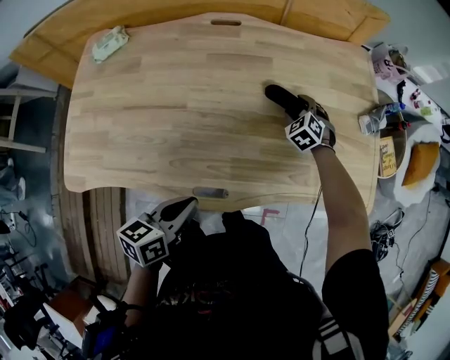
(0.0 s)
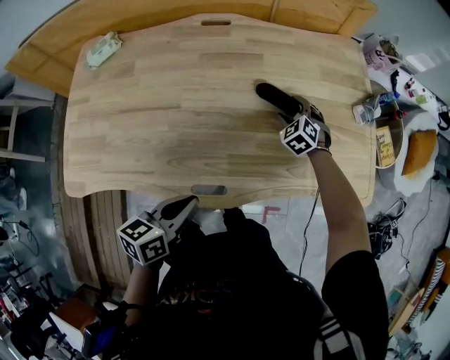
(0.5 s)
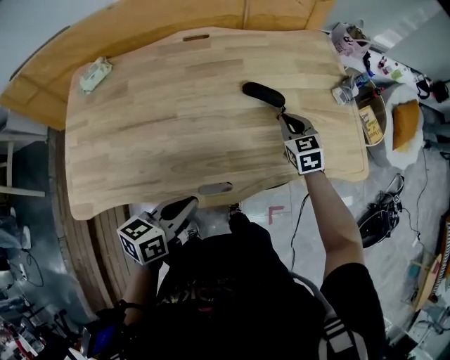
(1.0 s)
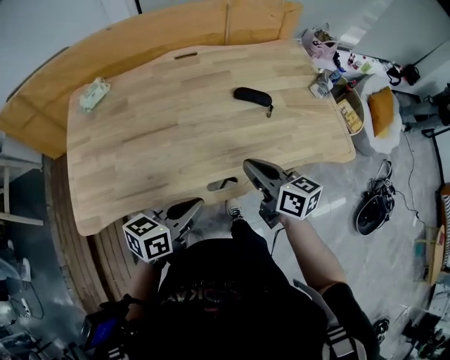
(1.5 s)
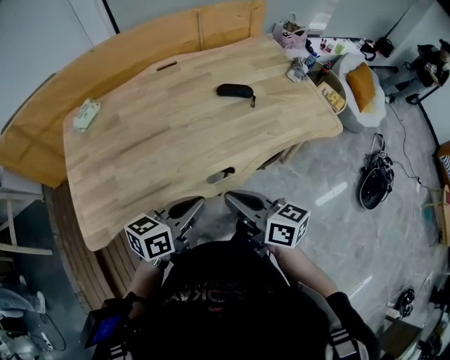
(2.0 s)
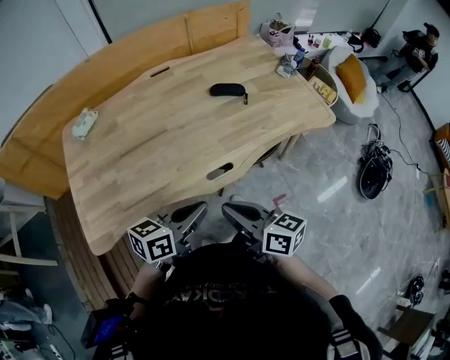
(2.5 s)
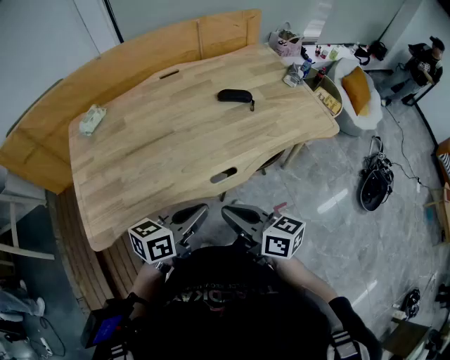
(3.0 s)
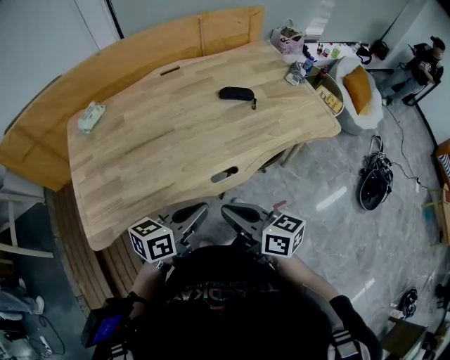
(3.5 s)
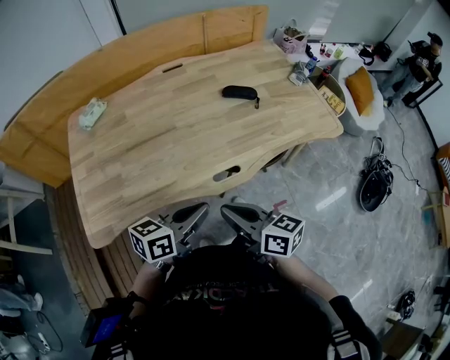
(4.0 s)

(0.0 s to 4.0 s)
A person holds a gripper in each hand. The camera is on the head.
0.0 s - 2.0 s: The right gripper goes approximately 50 cm backward and upward, rolls clockwise, seen from behind, by about 70 degrees, and closes its fingers. The left gripper travels backward and upward by some 10 cm, and changes its angle by roughly 30 degrees.
2.0 s - 4.0 s: The right gripper moves about 5 cm.

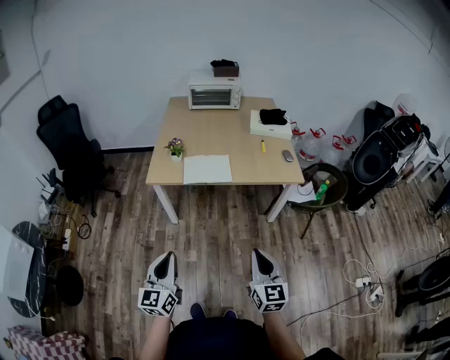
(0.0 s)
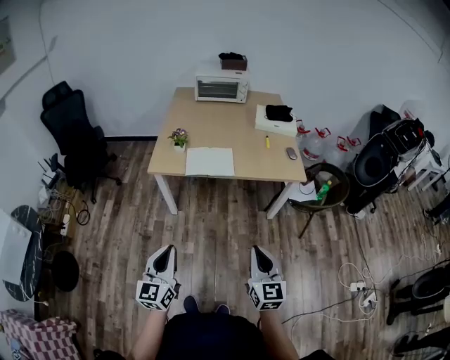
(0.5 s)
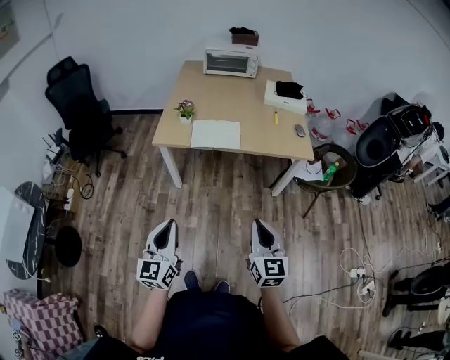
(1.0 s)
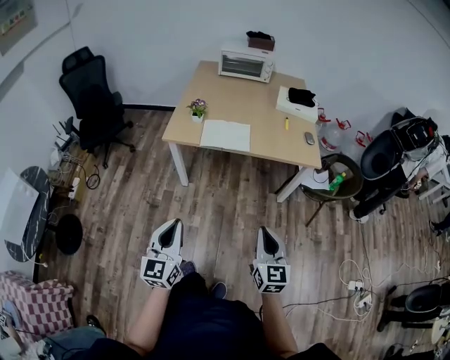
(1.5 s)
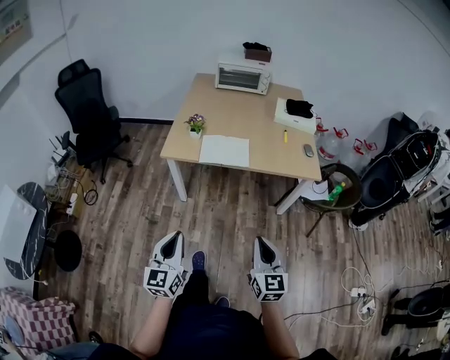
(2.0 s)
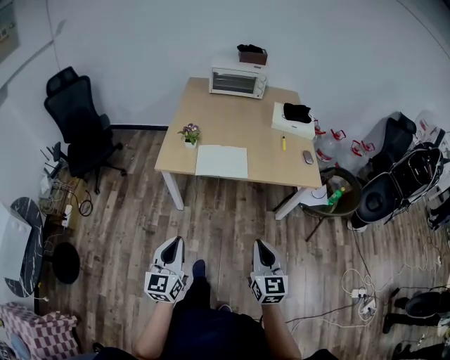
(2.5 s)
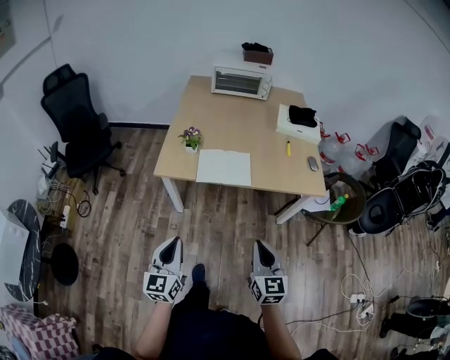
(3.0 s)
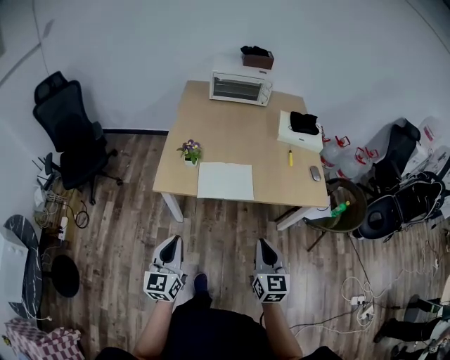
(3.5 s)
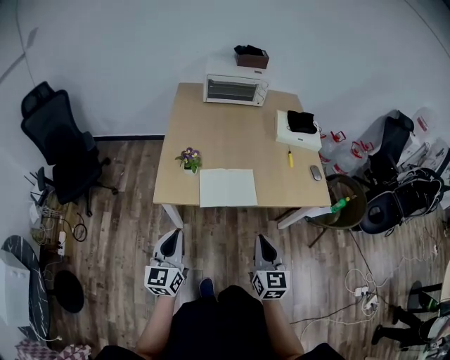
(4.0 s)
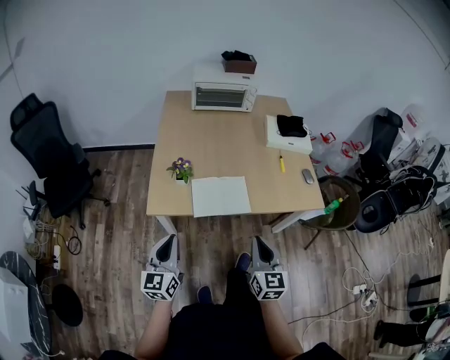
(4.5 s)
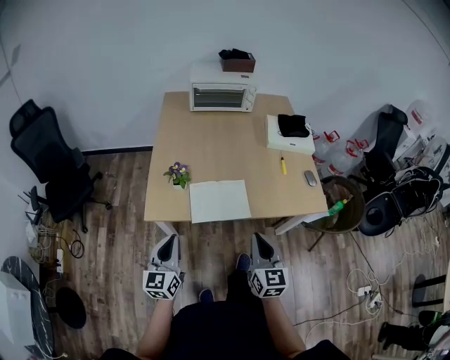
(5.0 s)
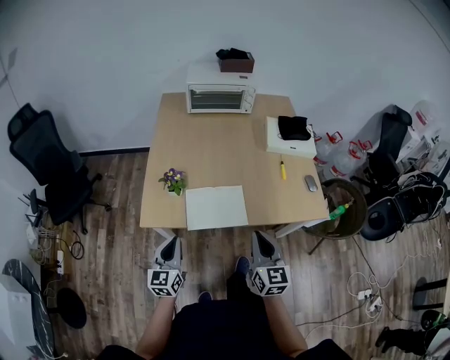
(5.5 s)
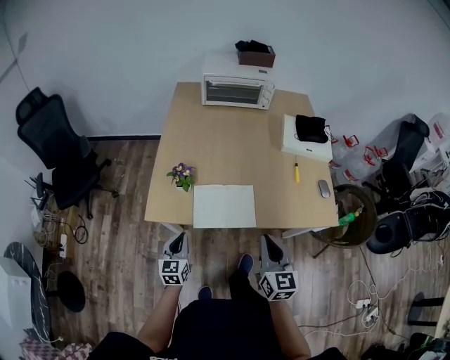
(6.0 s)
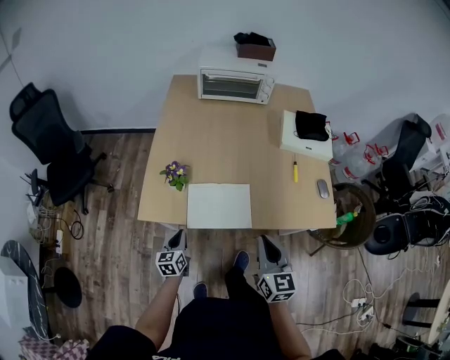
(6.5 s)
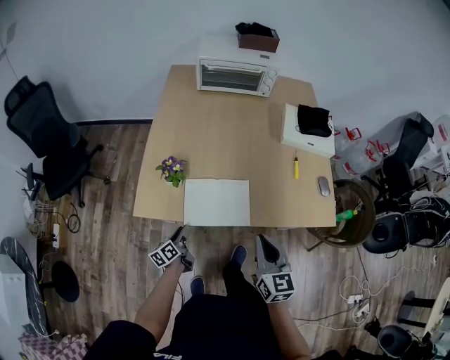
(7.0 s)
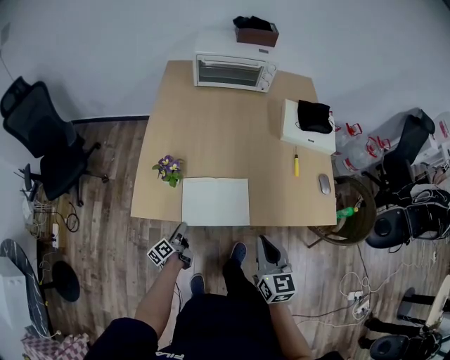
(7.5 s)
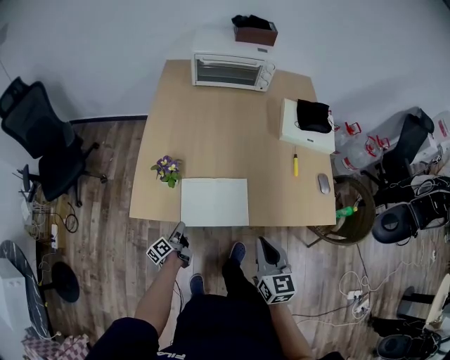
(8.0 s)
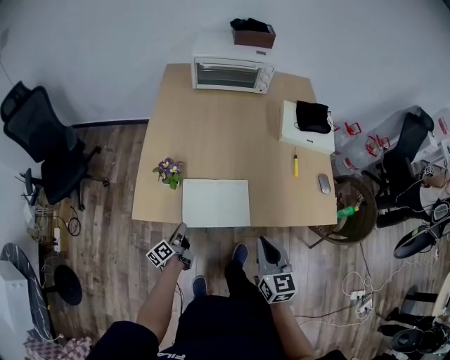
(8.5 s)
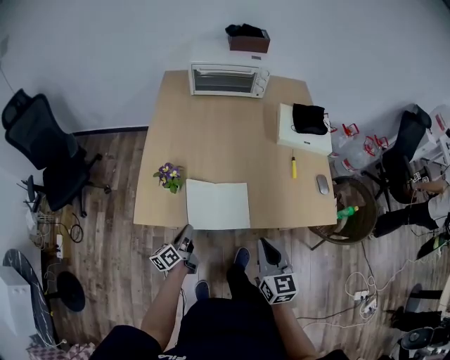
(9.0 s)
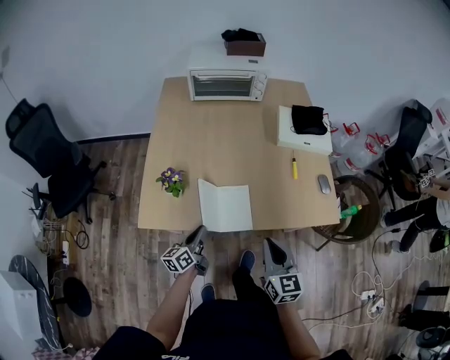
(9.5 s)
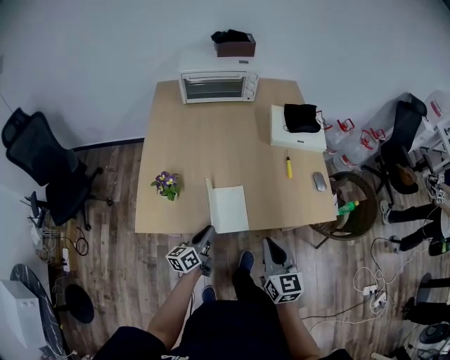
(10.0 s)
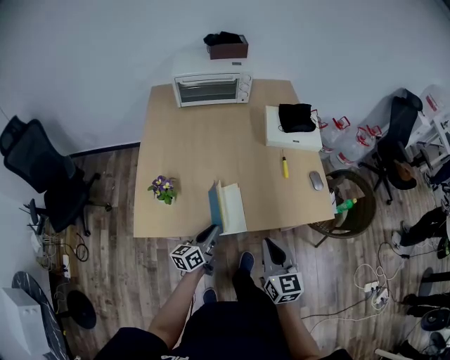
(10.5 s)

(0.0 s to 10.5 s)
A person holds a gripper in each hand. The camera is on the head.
0.0 s - 2.0 s: There are only small adjustments of the grippers.
2.0 s - 4.0 s: The grippers both shift forward by approximately 30 cm.
4.0 s - 6.5 s: The right gripper travels forward by some 15 cm; the left gripper shifts approximately 30 cm downward and forward, and rotates roughly 30 degrees.
6.5 s - 8.5 s: The left gripper goes about 5 cm downward, rolls counterclockwise, seen from behind, by approximately 50 degrees, and opens, then closes once more.
8.5 s - 10.5 s: The left gripper heads to the right and upward, covering roughly 20 cm, and changes its angle by about 40 degrees.

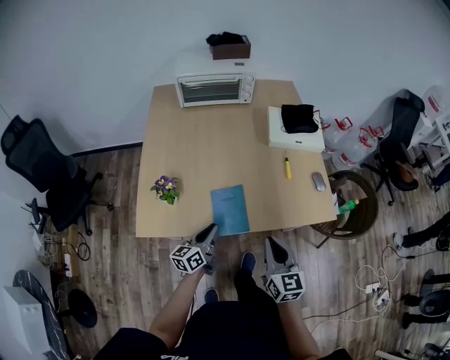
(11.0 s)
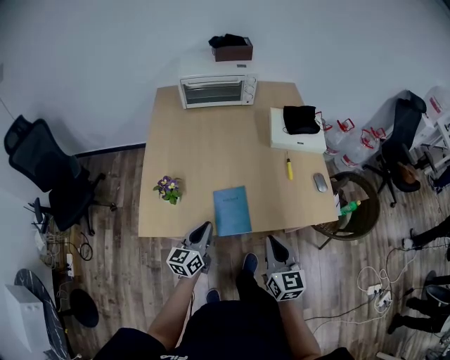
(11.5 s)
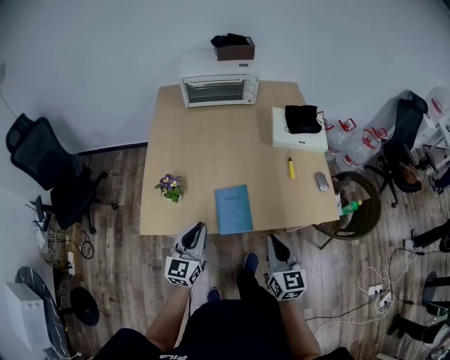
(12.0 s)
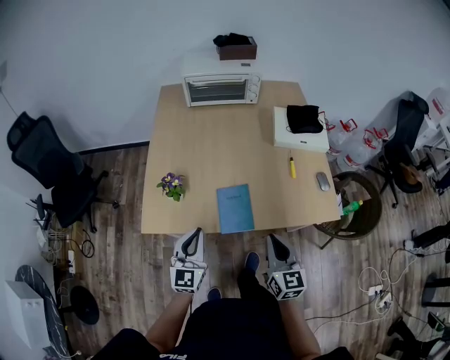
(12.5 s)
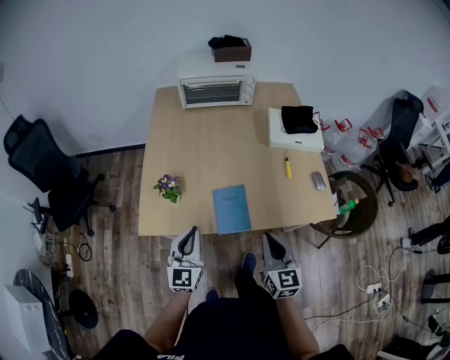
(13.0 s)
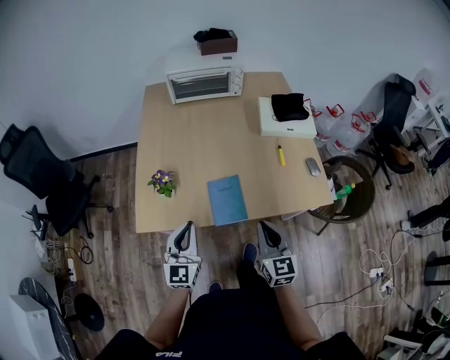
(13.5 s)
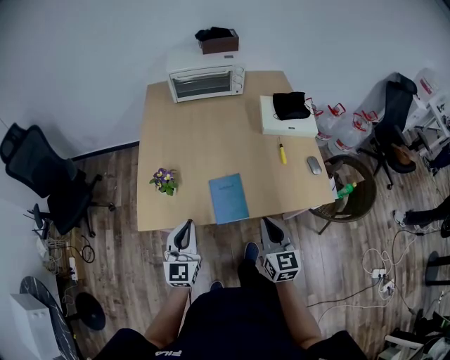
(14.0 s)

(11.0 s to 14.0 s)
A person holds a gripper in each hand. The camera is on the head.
11.0 s - 12.5 s: The left gripper moves upward and to the left, some 10 cm, and twists approximately 40 degrees clockwise, seen from behind.
12.5 s - 14.0 s: There are only small adjustments of the grippers.

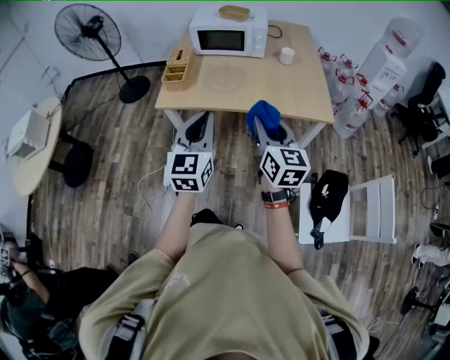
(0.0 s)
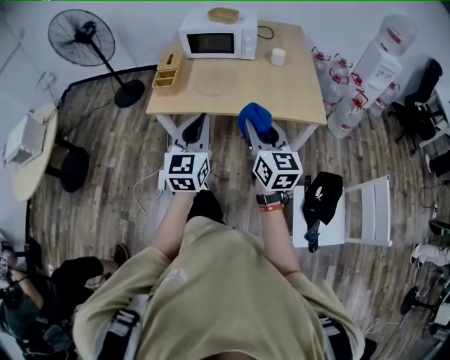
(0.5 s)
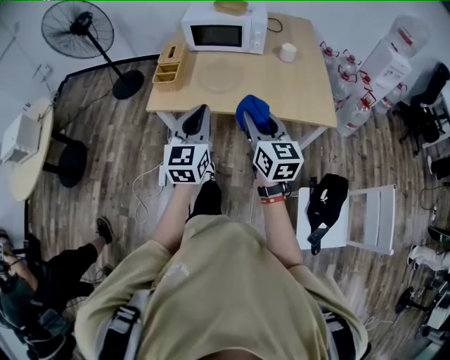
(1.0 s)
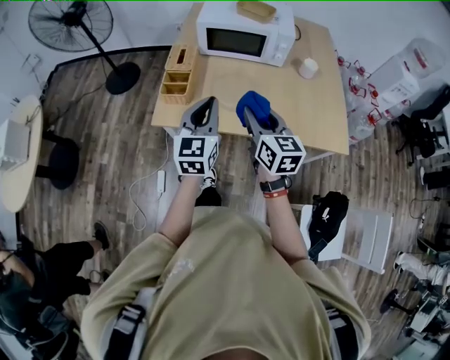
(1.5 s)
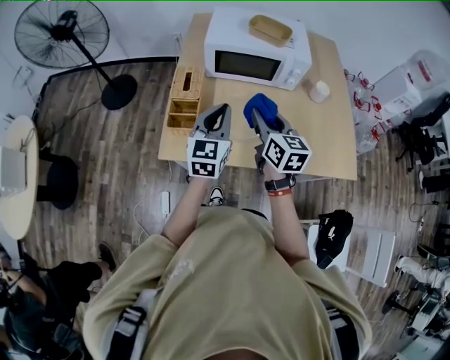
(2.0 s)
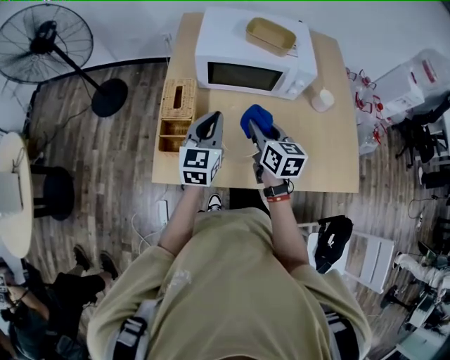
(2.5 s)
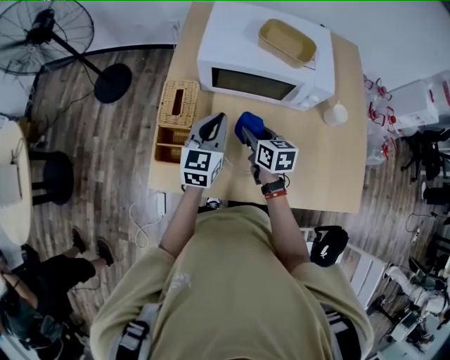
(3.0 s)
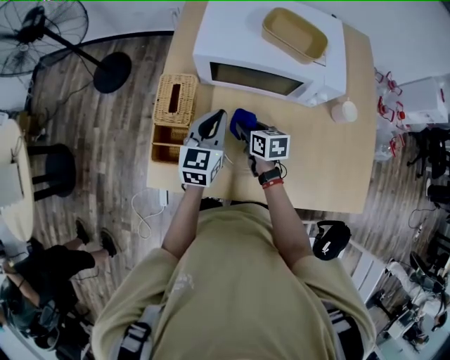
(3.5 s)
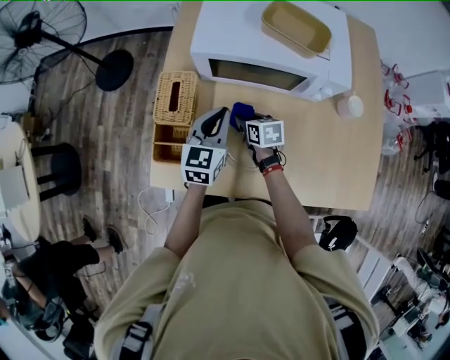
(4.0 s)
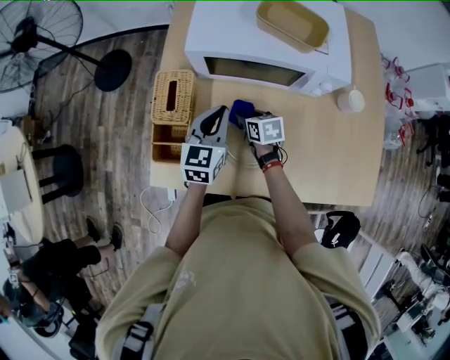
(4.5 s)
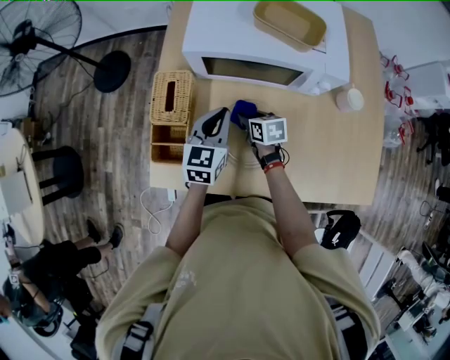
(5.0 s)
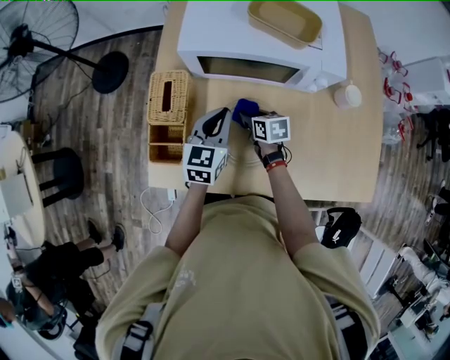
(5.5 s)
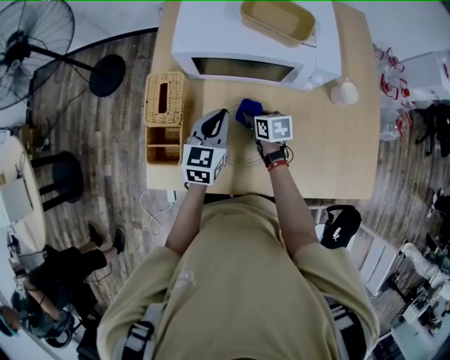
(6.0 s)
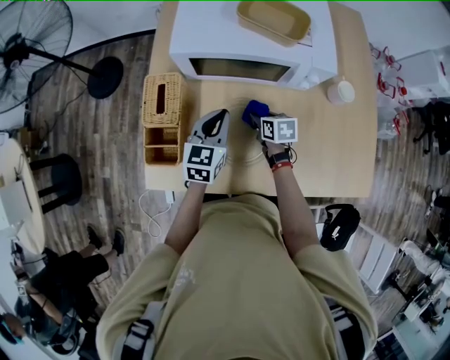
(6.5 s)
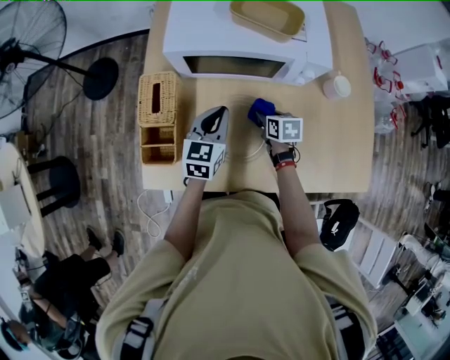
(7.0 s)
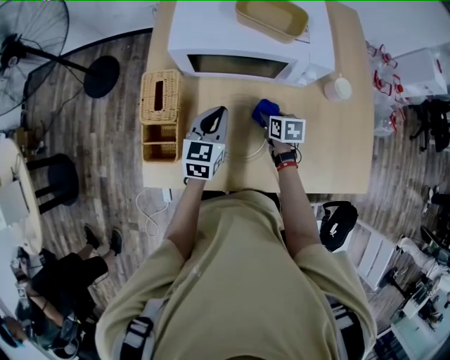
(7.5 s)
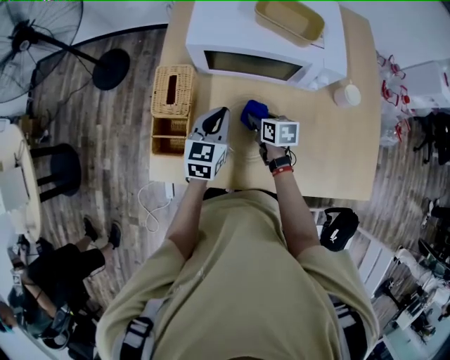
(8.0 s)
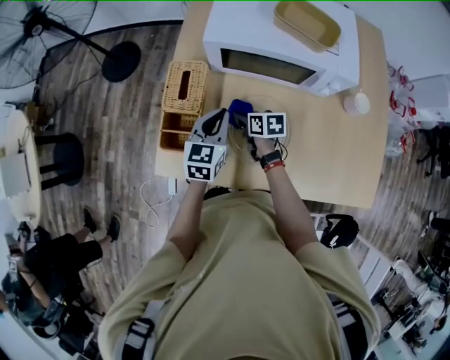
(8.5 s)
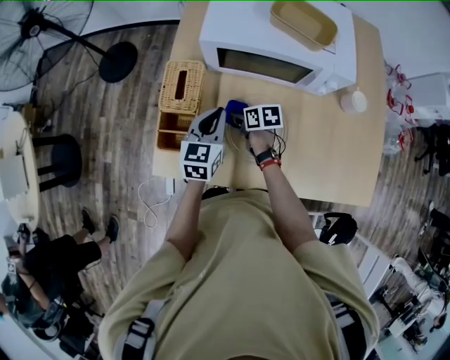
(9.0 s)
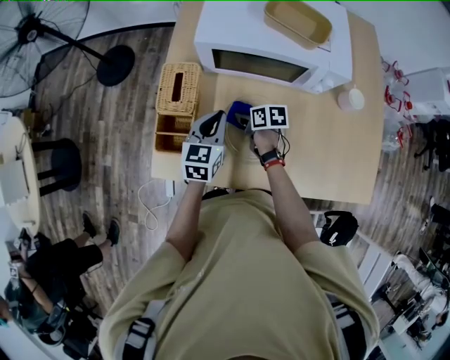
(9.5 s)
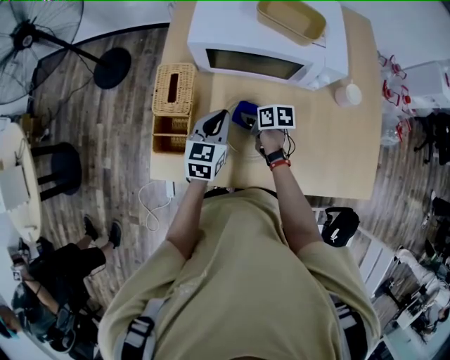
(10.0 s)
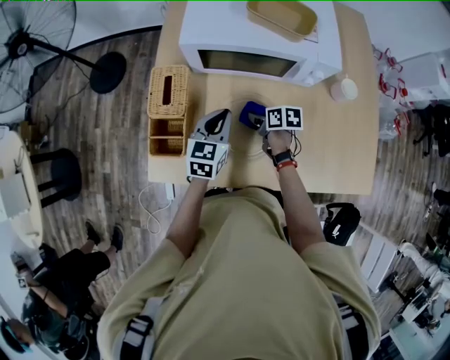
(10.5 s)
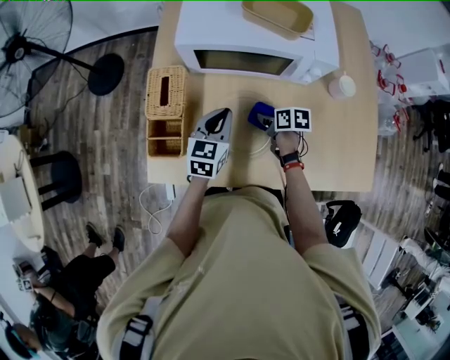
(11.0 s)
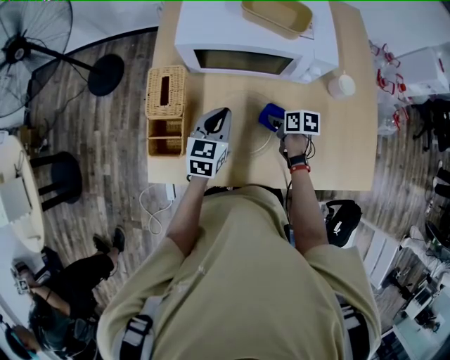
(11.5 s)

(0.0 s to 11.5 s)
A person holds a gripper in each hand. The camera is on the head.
0.0 s - 2.0 s: The pair of grippers is taken forward, approximately 50 cm.
2.0 s - 4.0 s: The right gripper travels downward and forward by some 35 cm, and angles its fingers downward, by about 30 degrees; the left gripper travels forward and downward by some 25 cm.
4.0 s - 6.0 s: The right gripper goes about 5 cm to the right.
6.0 s - 7.5 s: The right gripper is displaced to the right by some 10 cm.
7.5 s - 9.5 s: The left gripper heads to the left, covering approximately 5 cm. Meanwhile the right gripper moves to the left, some 15 cm, and changes its angle by approximately 20 degrees.
9.5 s - 11.5 s: The right gripper is displaced to the right by approximately 15 cm. Meanwhile the left gripper moves to the right, approximately 5 cm.
